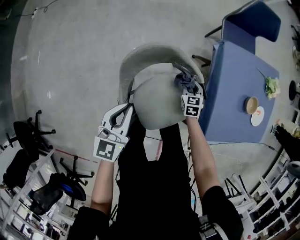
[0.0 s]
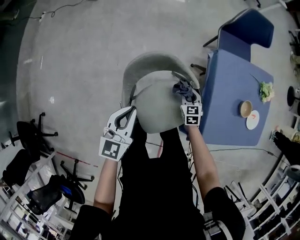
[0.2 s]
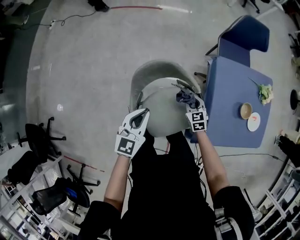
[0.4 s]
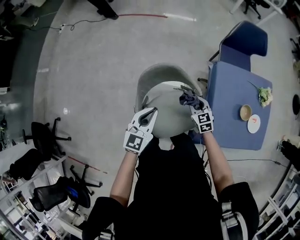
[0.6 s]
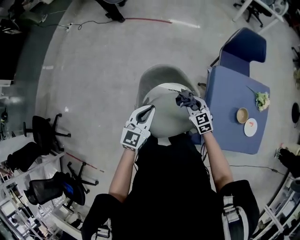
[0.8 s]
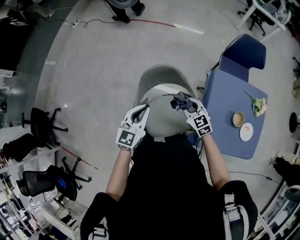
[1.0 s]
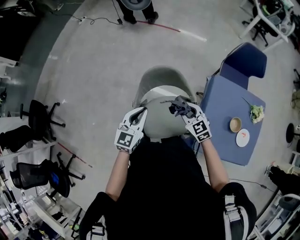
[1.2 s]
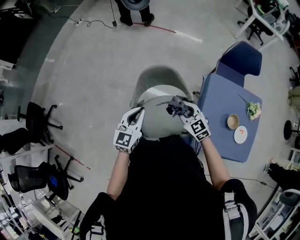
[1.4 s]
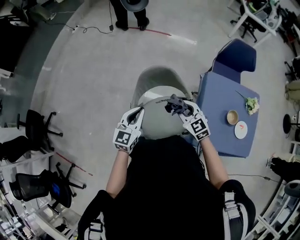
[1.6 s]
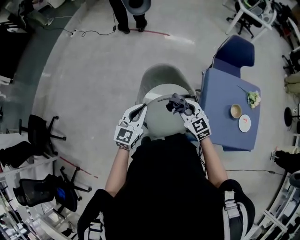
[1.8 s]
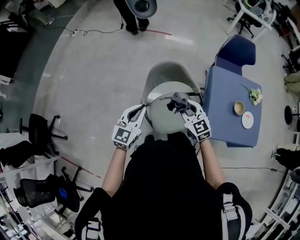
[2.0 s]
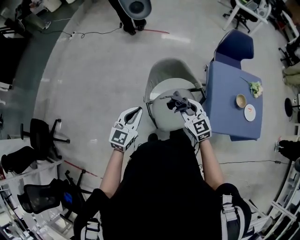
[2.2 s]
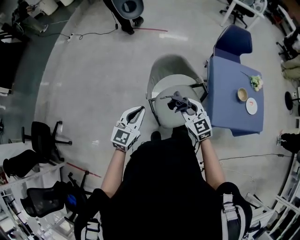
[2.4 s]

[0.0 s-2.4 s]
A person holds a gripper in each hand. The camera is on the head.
0.0 to 1.2 s: The right gripper moves upward, about 35 cm, and turns by approximately 50 degrees; the left gripper shifts about 15 cm upward.
1.2 to 2.4 s: The right gripper travels to the left, backward and upward by approximately 25 cm. The left gripper travels to the left and backward by about 20 cm.

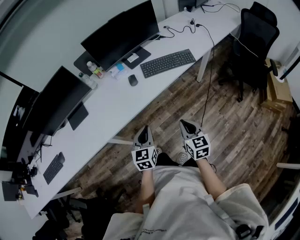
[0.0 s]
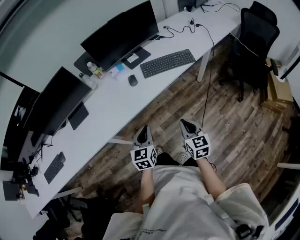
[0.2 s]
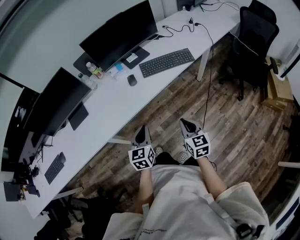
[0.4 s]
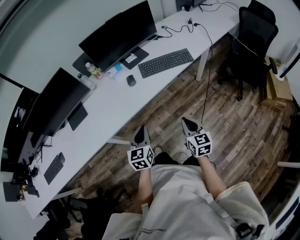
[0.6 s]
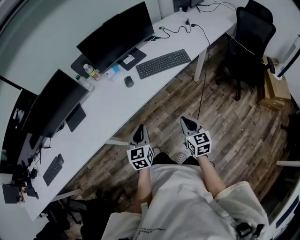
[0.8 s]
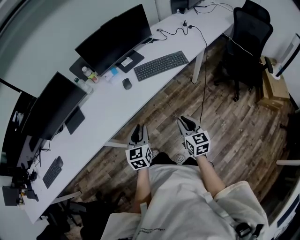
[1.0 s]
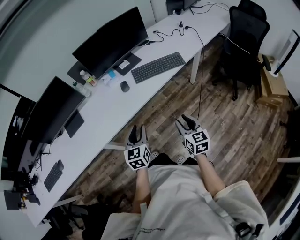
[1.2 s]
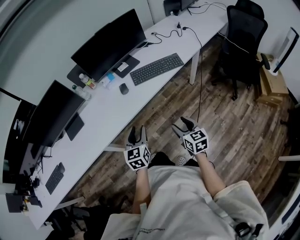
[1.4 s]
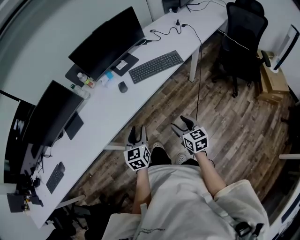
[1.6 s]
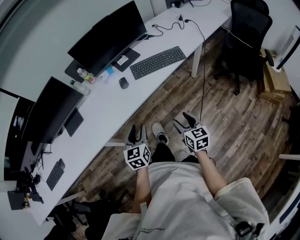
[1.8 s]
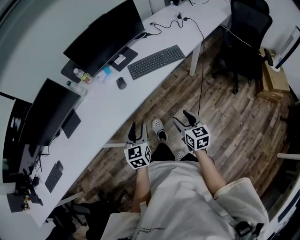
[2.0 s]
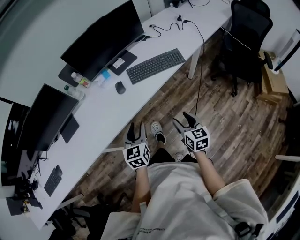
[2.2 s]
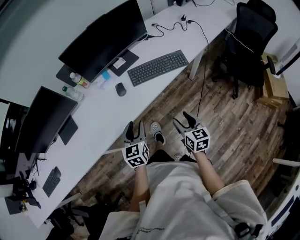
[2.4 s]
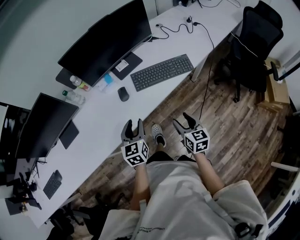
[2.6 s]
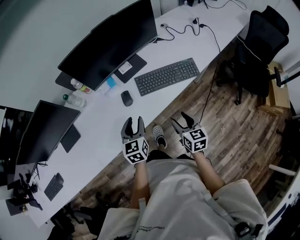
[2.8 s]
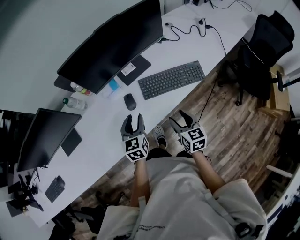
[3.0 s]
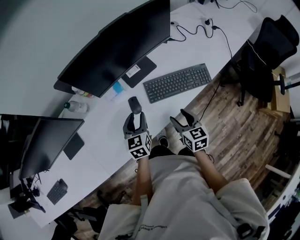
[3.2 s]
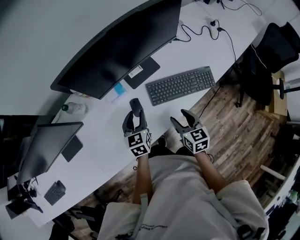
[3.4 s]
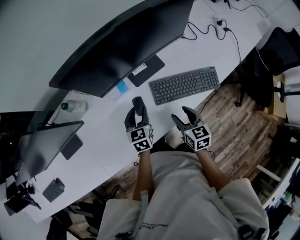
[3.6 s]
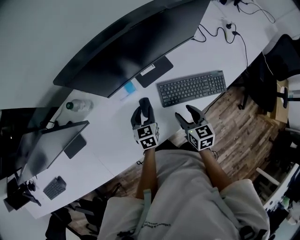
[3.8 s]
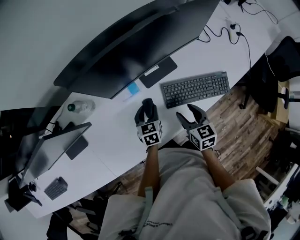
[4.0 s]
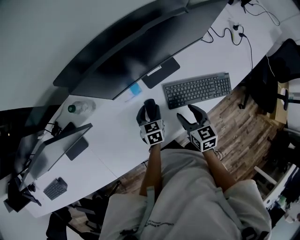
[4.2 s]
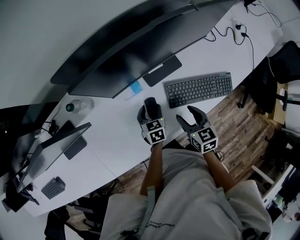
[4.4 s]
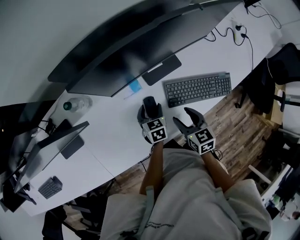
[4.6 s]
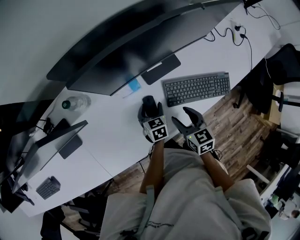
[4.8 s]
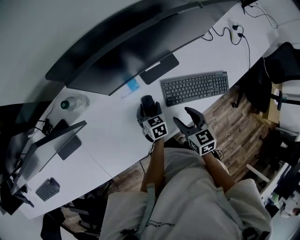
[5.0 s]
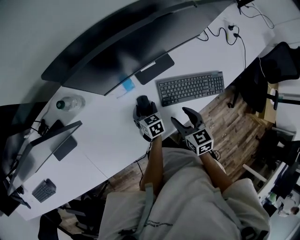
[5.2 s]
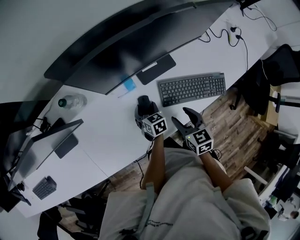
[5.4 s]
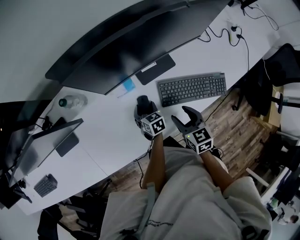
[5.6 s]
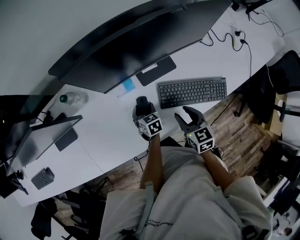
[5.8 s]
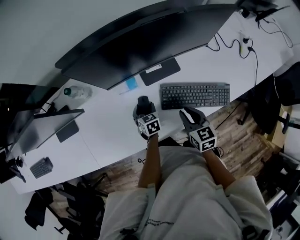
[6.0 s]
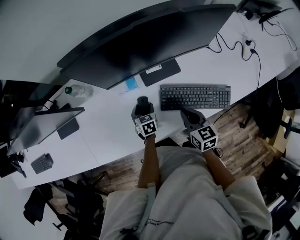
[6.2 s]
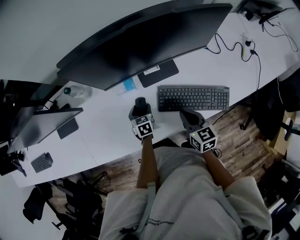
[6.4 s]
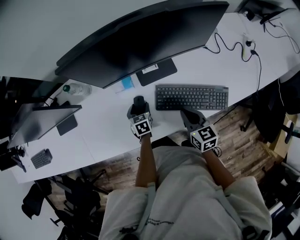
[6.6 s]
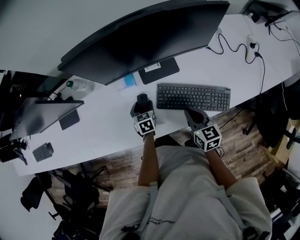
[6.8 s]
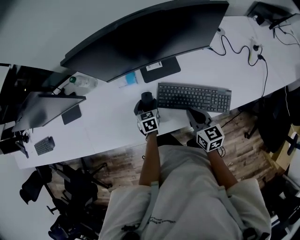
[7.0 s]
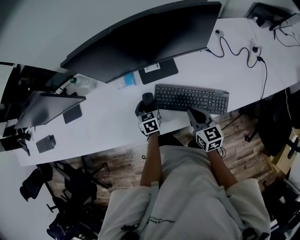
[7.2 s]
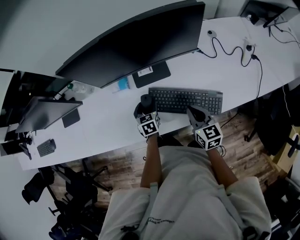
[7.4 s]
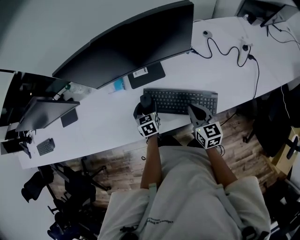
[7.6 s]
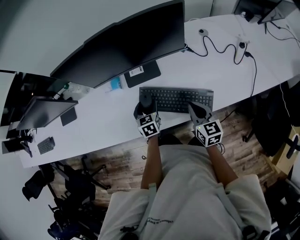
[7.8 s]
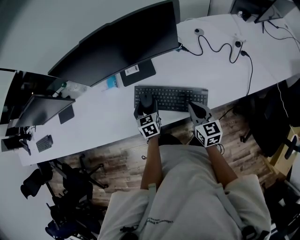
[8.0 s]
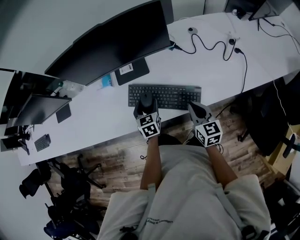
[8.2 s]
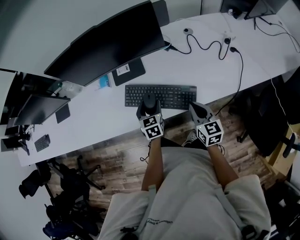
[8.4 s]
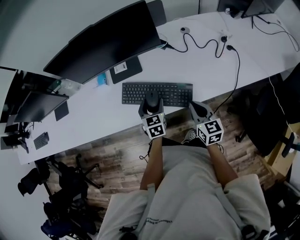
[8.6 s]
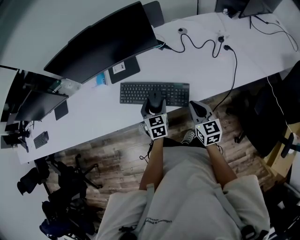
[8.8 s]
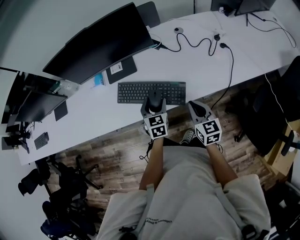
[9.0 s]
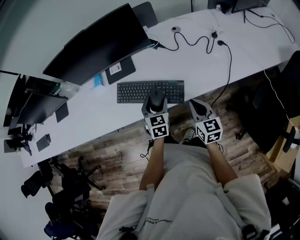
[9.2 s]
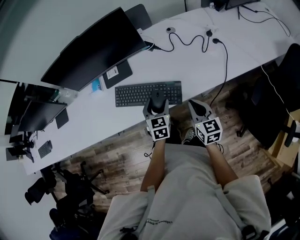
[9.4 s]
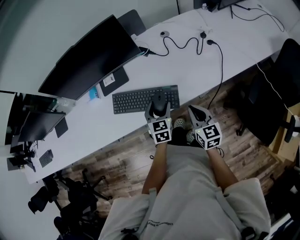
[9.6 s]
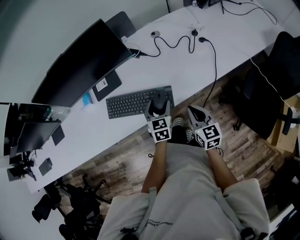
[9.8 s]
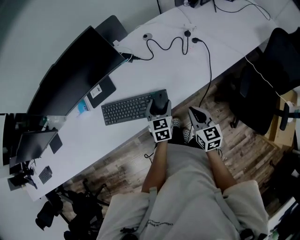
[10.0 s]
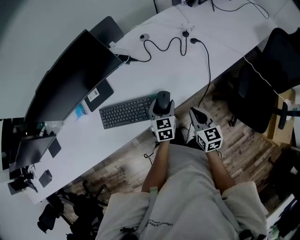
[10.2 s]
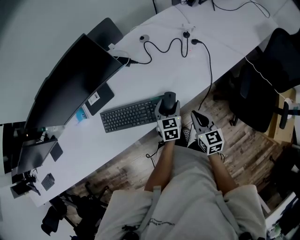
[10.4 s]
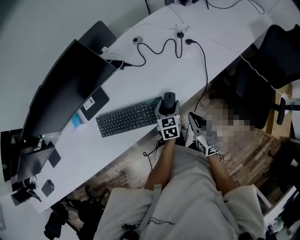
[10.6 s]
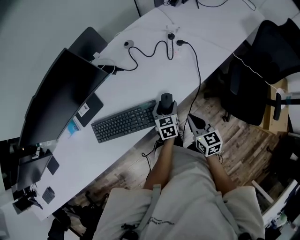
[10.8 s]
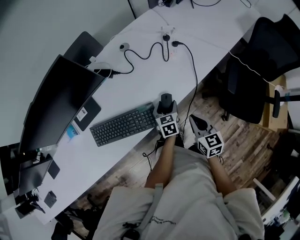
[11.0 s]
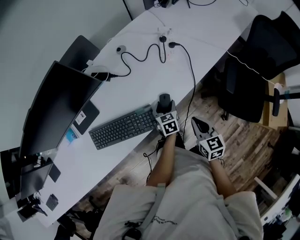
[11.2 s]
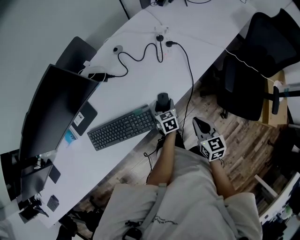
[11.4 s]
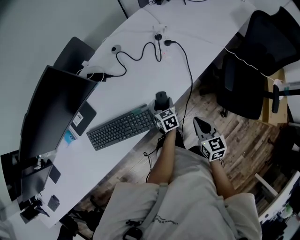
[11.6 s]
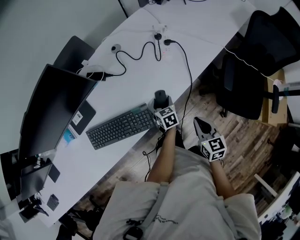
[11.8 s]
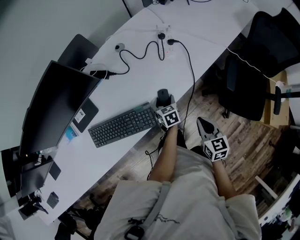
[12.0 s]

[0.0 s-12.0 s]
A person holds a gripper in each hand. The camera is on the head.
0.0 to 1.6 s: The right gripper moves approximately 5 cm, and opens up, while the left gripper opens its fingers.
1.6 to 3.0 s: The two grippers go approximately 30 cm forward.
3.0 to 4.4 s: The right gripper heads forward and to the left, covering about 20 cm. The left gripper is displaced downward and forward by about 20 cm, and rotates approximately 20 degrees.
4.4 to 6.0 s: The right gripper heads to the right, covering some 5 cm, and closes.
6.0 to 7.6 s: The right gripper is displaced to the right by approximately 15 cm, and closes up, while the left gripper is displaced to the right and upward by roughly 15 cm.
7.6 to 9.0 s: The two grippers go about 20 cm to the right and backward.
9.0 to 10.4 s: The left gripper shifts roughly 15 cm to the right, and swivels some 20 degrees; the right gripper travels to the right by approximately 10 cm.
10.4 to 12.0 s: The right gripper is displaced to the right by some 10 cm, while the left gripper goes roughly 10 cm downward and to the right.

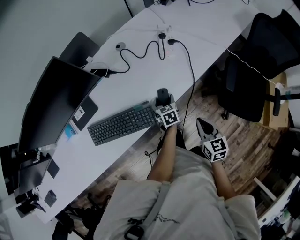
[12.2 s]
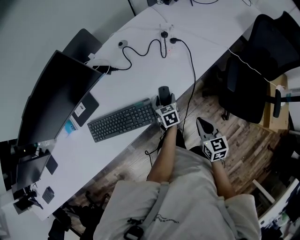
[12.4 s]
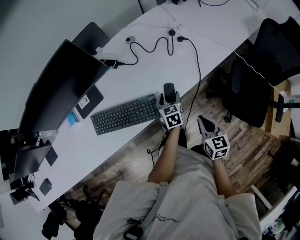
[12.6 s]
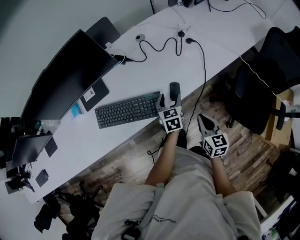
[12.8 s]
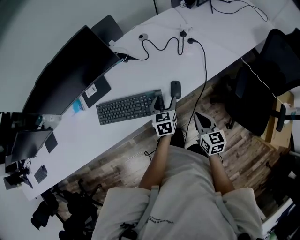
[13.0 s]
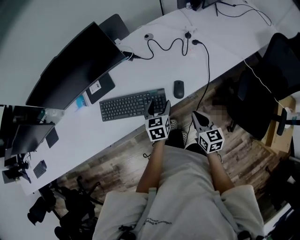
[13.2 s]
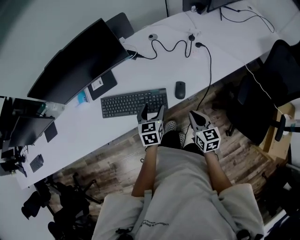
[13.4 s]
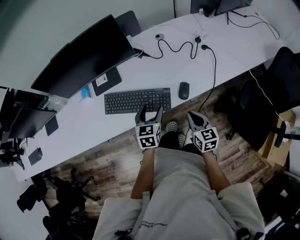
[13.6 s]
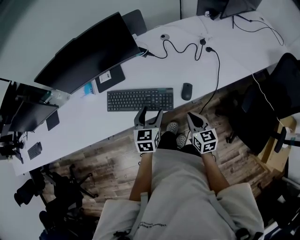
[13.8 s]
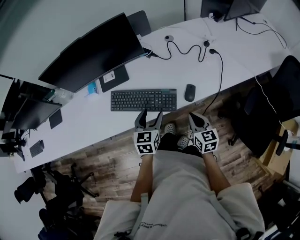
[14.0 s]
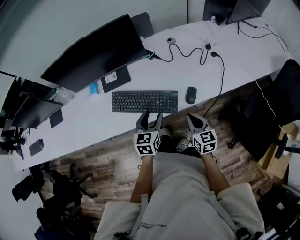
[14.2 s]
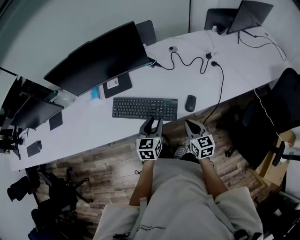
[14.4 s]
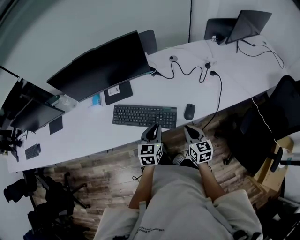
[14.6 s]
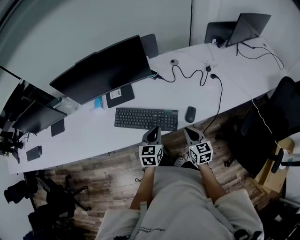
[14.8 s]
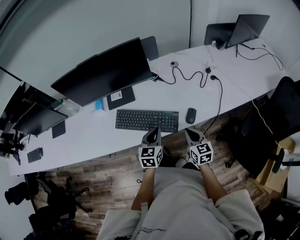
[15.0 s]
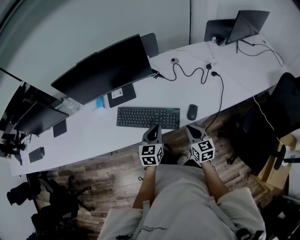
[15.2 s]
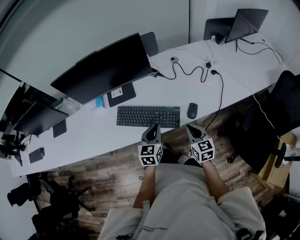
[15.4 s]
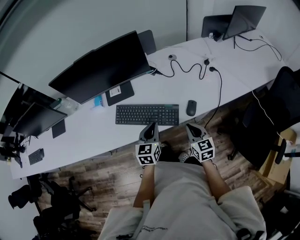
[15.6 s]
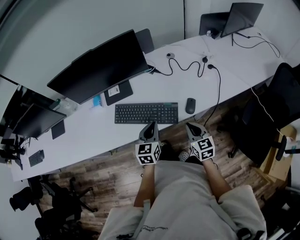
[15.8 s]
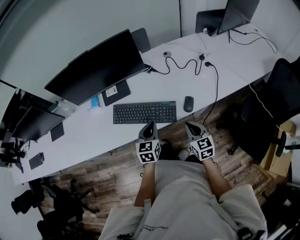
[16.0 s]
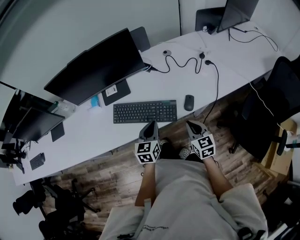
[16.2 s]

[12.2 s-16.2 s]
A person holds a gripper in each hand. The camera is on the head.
12.2 to 13.6 s: The right gripper shifts about 10 cm to the left. Meanwhile the left gripper goes about 25 cm to the left, upward and backward.
13.6 to 14.8 s: The left gripper closes up. The right gripper shifts by approximately 5 cm.
14.8 to 16.2 s: There are only small adjustments of the grippers.

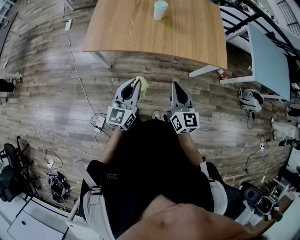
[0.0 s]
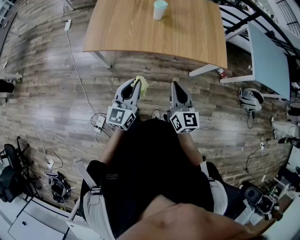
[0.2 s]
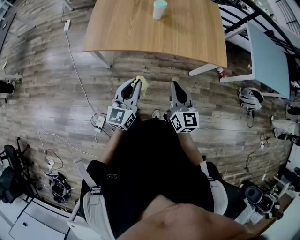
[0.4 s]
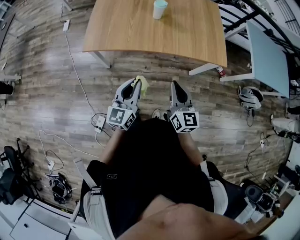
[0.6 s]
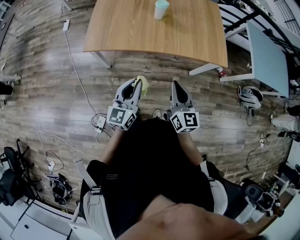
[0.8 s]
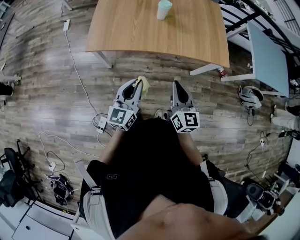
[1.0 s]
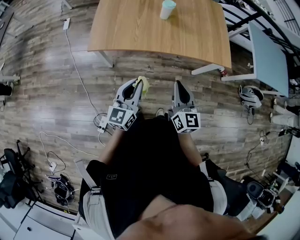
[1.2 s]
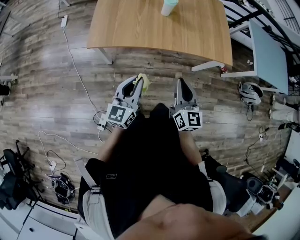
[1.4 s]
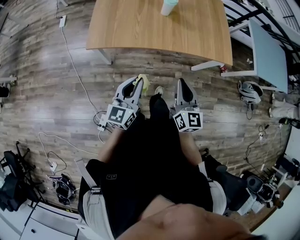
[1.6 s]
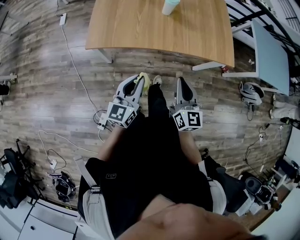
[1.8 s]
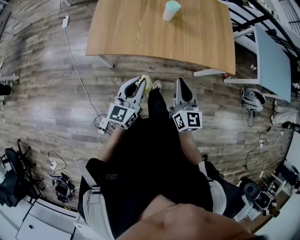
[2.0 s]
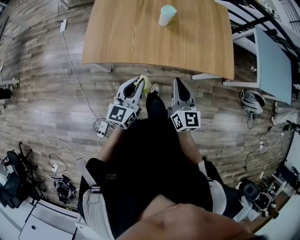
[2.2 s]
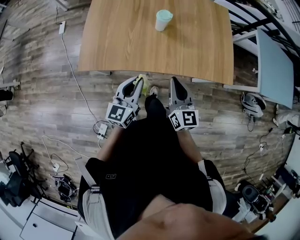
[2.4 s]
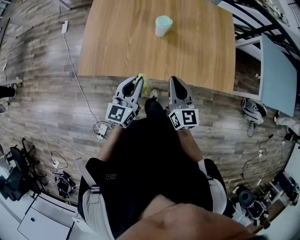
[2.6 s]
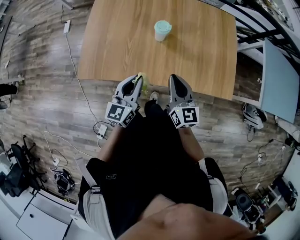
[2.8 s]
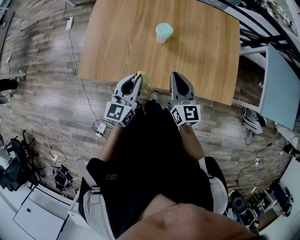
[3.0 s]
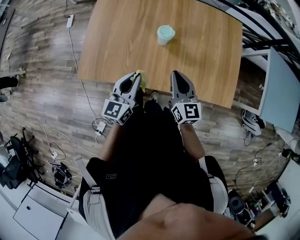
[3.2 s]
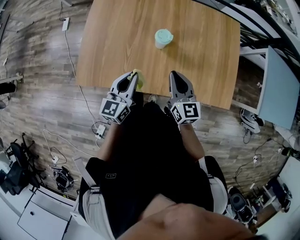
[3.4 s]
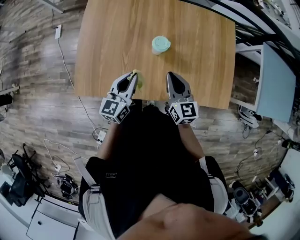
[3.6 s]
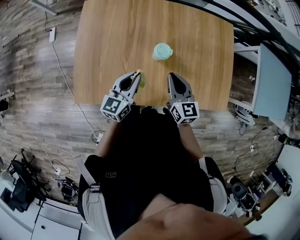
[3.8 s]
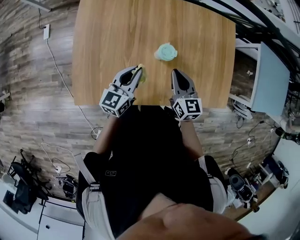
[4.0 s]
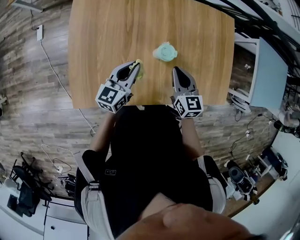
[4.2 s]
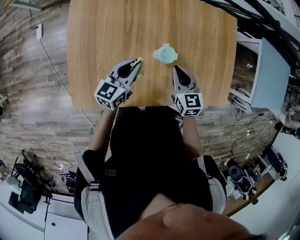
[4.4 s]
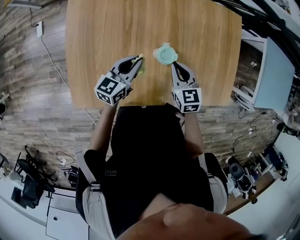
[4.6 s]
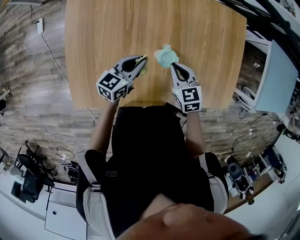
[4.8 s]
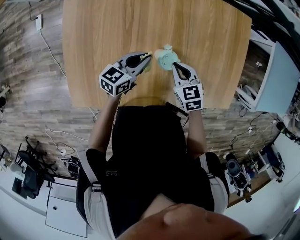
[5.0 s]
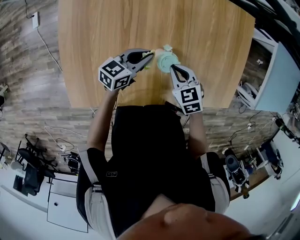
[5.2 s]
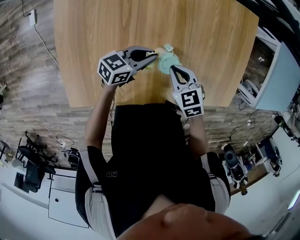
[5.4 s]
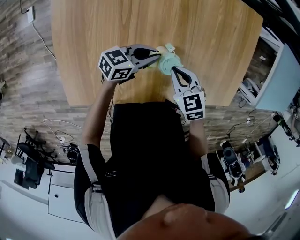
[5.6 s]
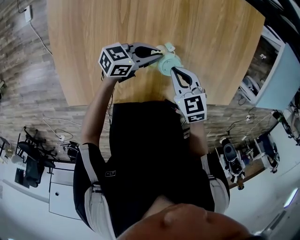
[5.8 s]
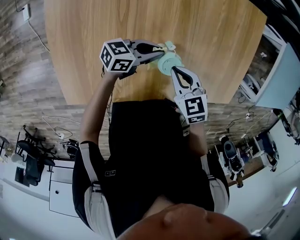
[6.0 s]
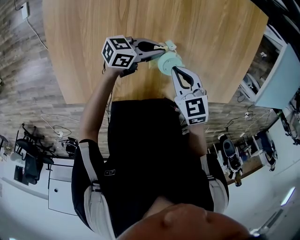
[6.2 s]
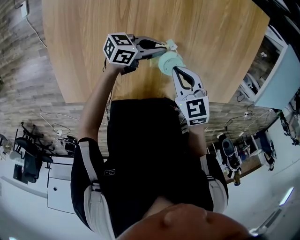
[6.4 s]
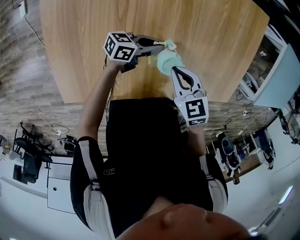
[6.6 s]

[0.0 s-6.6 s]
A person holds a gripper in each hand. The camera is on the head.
0.0 to 1.6 s: The grippers both shift to the left by approximately 10 cm.
1.6 to 3.2 s: Both grippers travel together forward, approximately 35 cm.
3.2 to 5.0 s: Both grippers move forward and downward, approximately 30 cm. The right gripper angles its fingers downward, by some 40 degrees, while the left gripper changes its angle by about 40 degrees.
5.0 to 6.6 s: The left gripper is displaced downward by about 10 cm, and rotates approximately 40 degrees.
